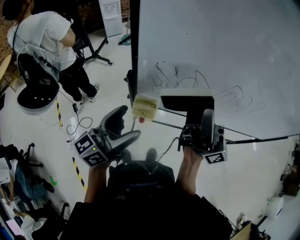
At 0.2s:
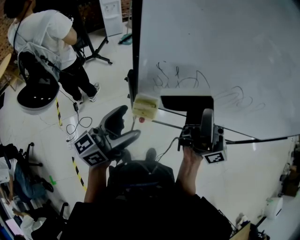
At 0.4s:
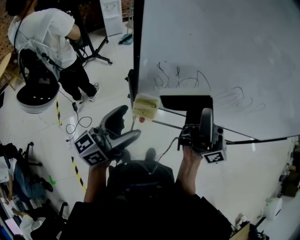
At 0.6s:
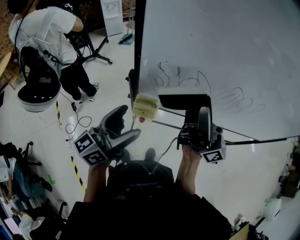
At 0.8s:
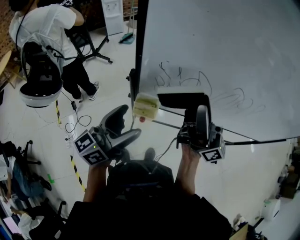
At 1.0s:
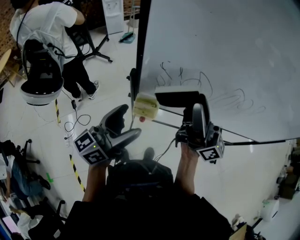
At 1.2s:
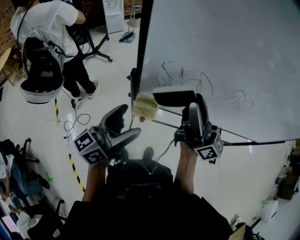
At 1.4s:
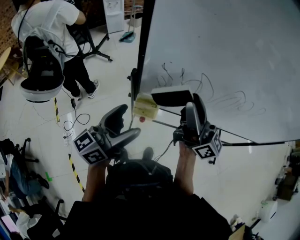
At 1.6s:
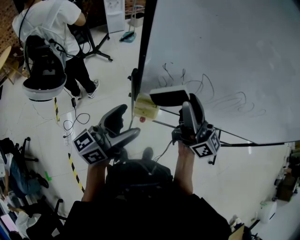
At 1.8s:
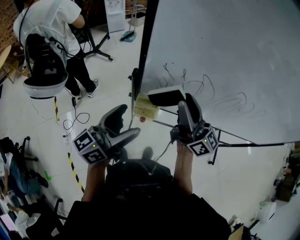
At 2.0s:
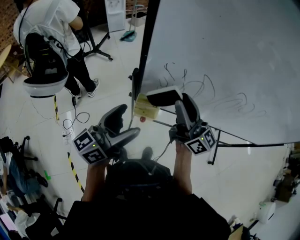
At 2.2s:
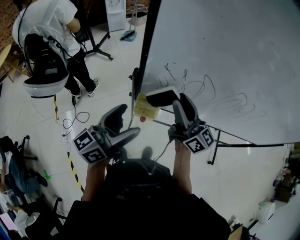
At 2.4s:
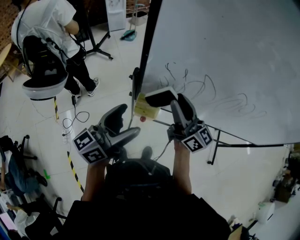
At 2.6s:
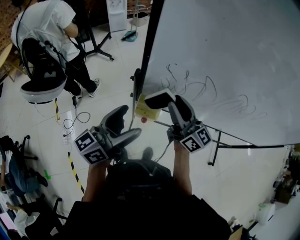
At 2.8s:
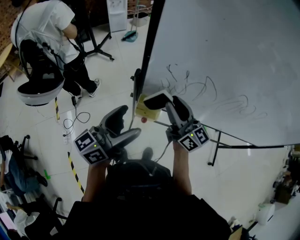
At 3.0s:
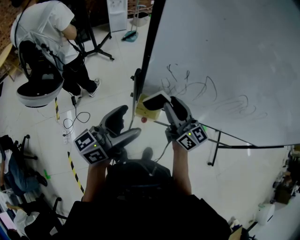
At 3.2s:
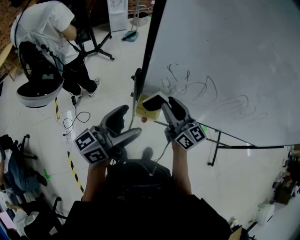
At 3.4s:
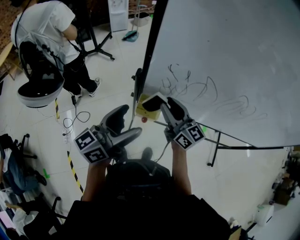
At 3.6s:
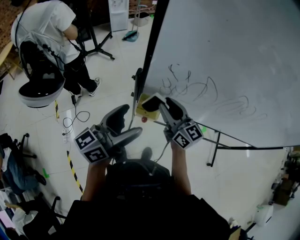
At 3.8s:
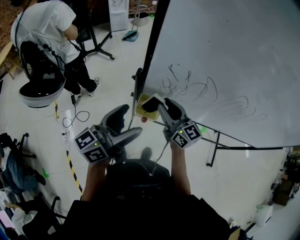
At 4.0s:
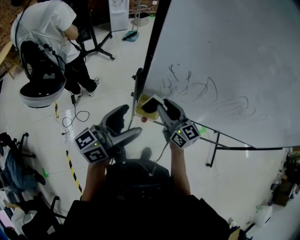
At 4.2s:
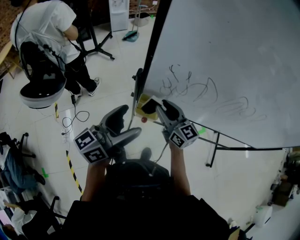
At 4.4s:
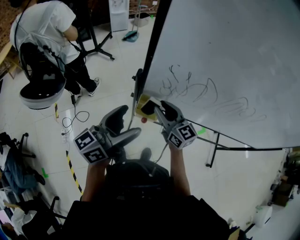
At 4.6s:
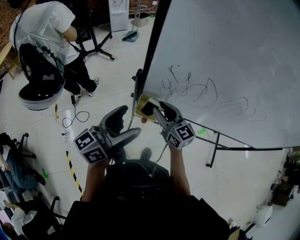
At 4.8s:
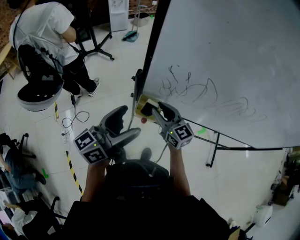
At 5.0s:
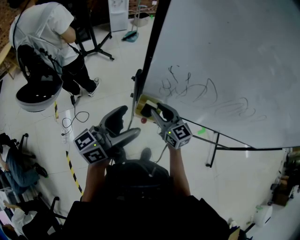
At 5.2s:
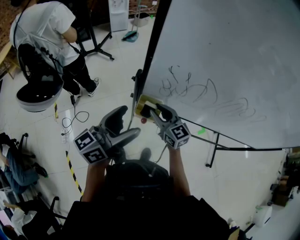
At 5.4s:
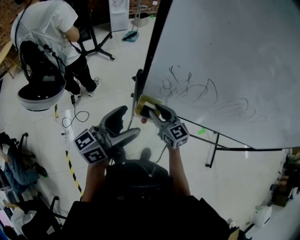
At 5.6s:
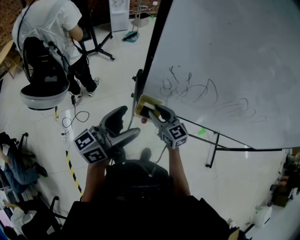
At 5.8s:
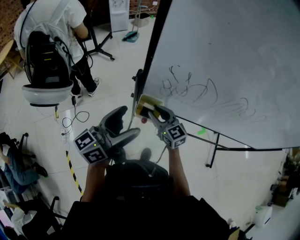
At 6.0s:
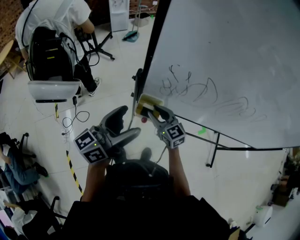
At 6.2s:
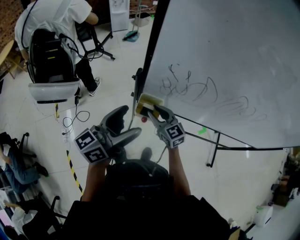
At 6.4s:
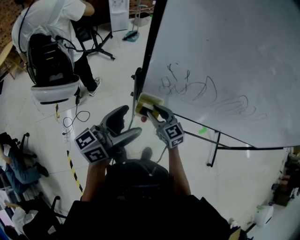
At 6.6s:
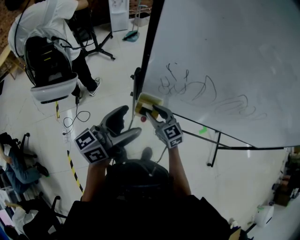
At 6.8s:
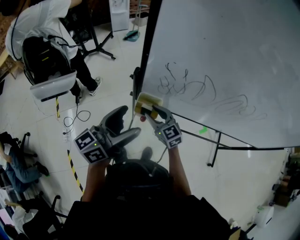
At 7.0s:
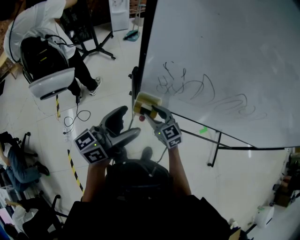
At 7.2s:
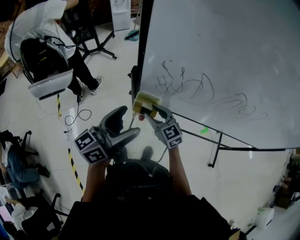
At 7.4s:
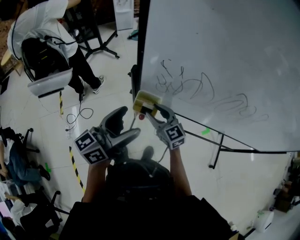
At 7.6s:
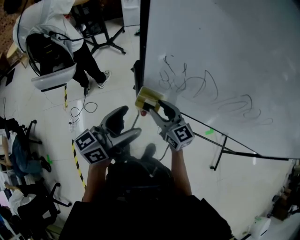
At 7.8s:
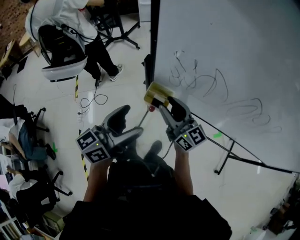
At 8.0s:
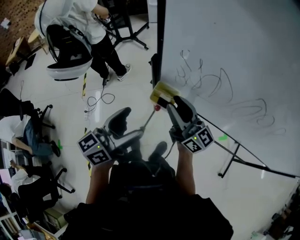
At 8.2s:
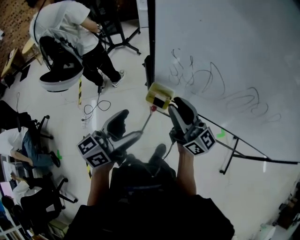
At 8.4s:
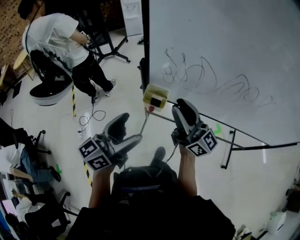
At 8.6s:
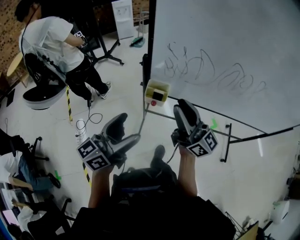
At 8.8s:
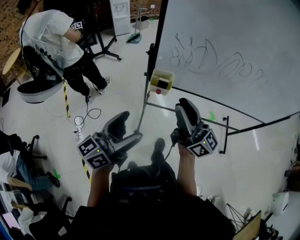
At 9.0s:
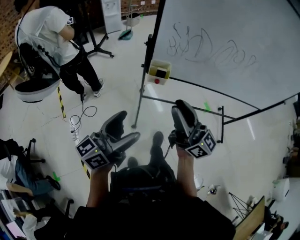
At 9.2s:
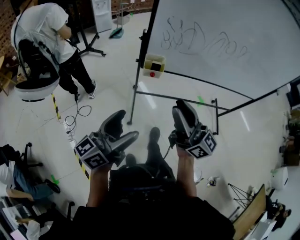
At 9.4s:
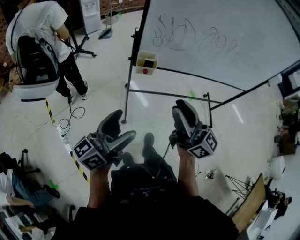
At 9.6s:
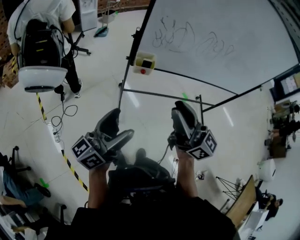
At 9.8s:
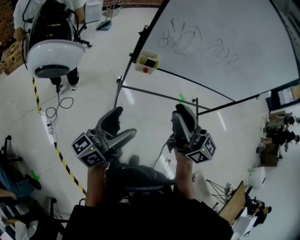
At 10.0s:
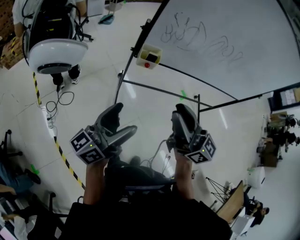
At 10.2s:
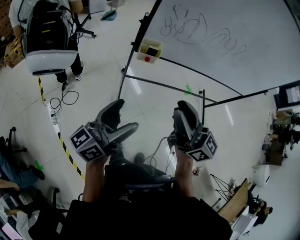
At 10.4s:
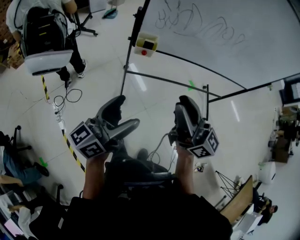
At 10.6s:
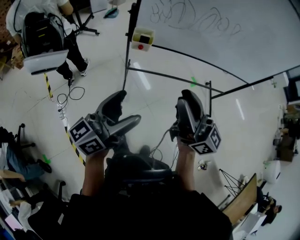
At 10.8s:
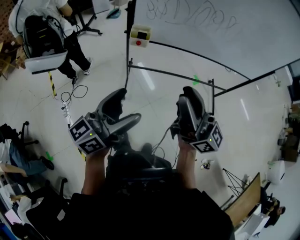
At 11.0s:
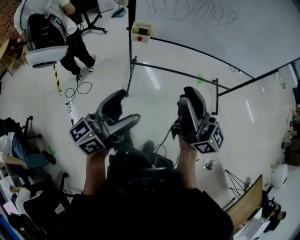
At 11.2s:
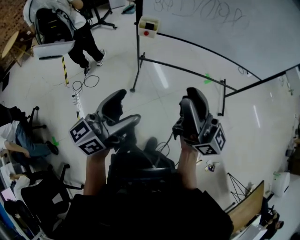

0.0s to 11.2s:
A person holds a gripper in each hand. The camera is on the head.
0.0s to 1.6s: The right gripper heads downward, covering about 5 cm, and rotates about 20 degrees.
1.6s to 3.2s: The right gripper heads downward and to the left, covering about 15 cm, and rotates about 20 degrees.
3.2s to 4.8s: The right gripper is displaced downward by about 5 cm.
4.8s to 6.4s: The right gripper is displaced downward by about 5 cm.
6.4s to 8.0s: The left gripper is displaced backward by some 5 cm; the right gripper shifts about 15 cm upward, and points its fingers some 30 degrees further upward.
8.0s to 9.6s: The left gripper shifts about 25 cm backward and to the left, and changes its angle by about 30 degrees. The right gripper moves backward, about 30 cm, and turns by approximately 20 degrees.
9.6s to 11.2s: Both grippers move to the right and backward, some 20 cm.

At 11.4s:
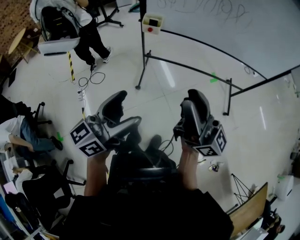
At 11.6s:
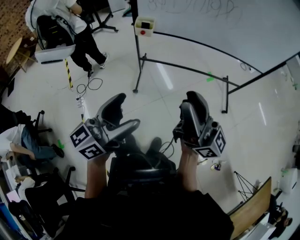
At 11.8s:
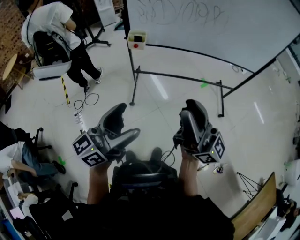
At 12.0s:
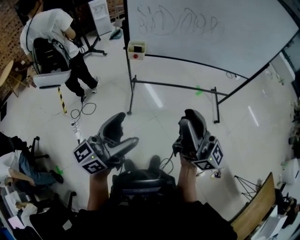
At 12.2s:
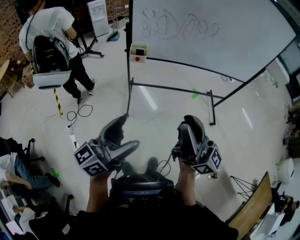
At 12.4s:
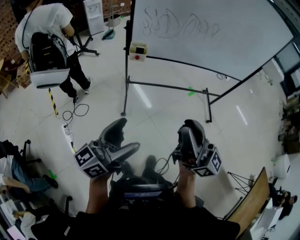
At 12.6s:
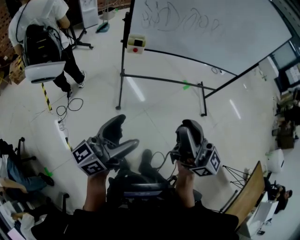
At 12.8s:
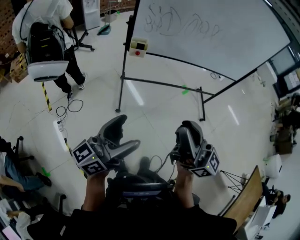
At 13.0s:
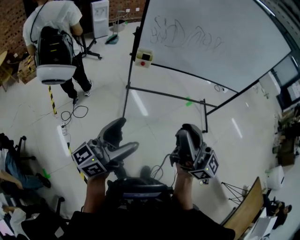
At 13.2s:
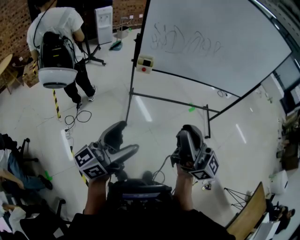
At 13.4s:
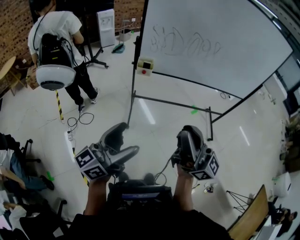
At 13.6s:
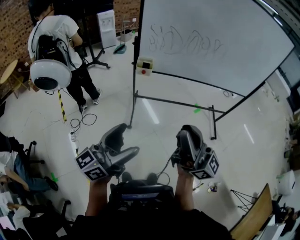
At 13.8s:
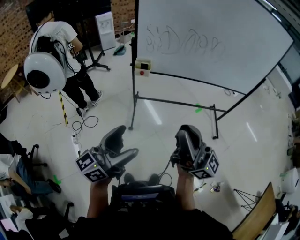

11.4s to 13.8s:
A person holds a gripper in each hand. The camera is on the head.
11.4s to 12.6s: The left gripper is displaced to the left by some 10 cm. The right gripper travels to the left and backward by approximately 10 cm.
12.6s to 13.8s: The left gripper ends up about 5 cm from where it was. Meanwhile the right gripper shifts roughly 5 cm to the right.

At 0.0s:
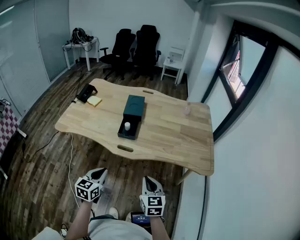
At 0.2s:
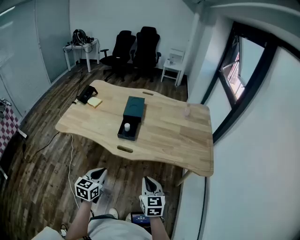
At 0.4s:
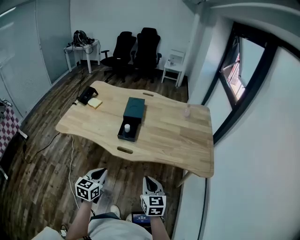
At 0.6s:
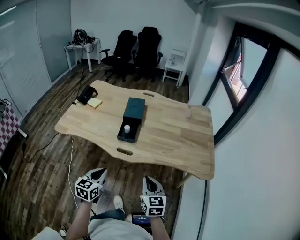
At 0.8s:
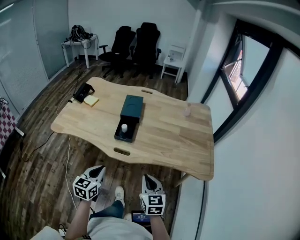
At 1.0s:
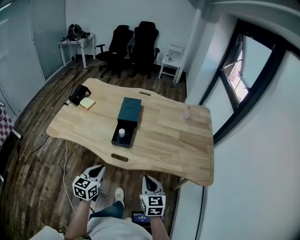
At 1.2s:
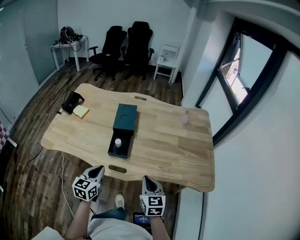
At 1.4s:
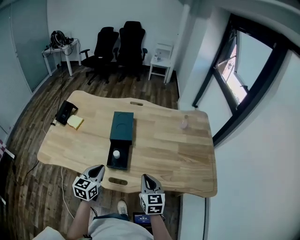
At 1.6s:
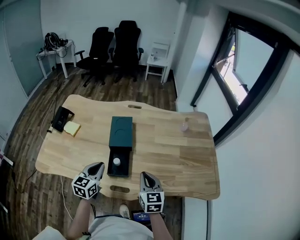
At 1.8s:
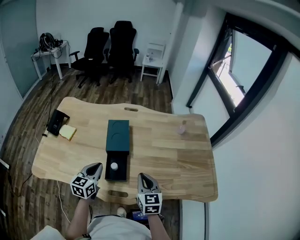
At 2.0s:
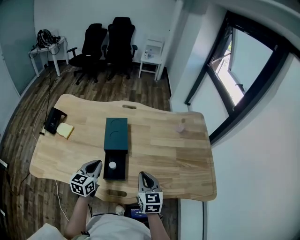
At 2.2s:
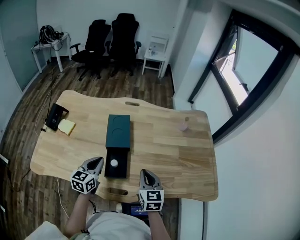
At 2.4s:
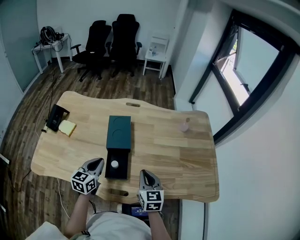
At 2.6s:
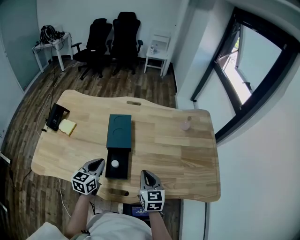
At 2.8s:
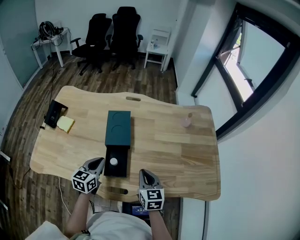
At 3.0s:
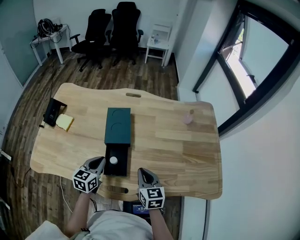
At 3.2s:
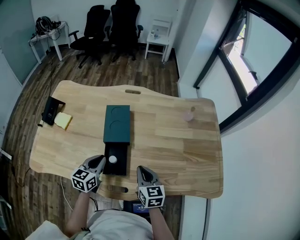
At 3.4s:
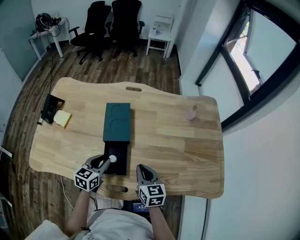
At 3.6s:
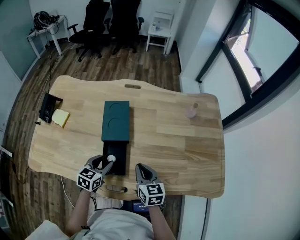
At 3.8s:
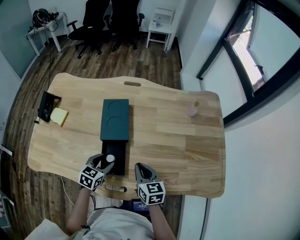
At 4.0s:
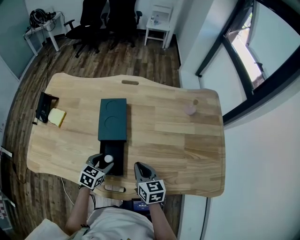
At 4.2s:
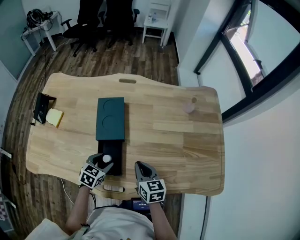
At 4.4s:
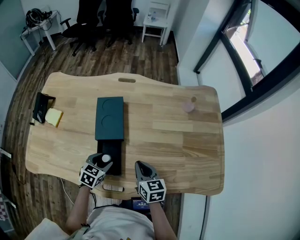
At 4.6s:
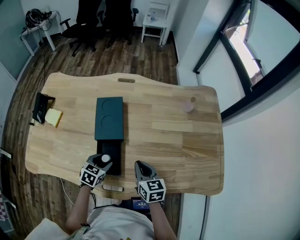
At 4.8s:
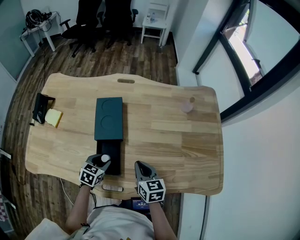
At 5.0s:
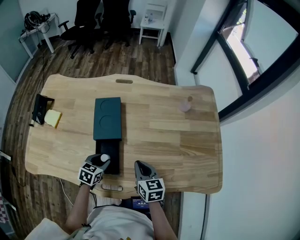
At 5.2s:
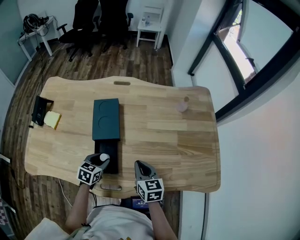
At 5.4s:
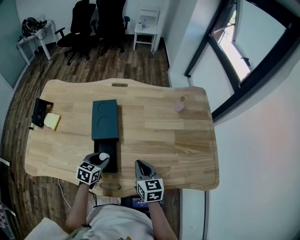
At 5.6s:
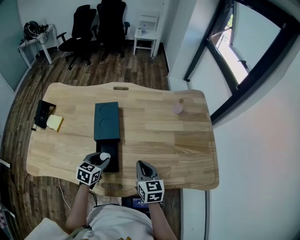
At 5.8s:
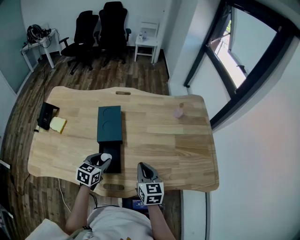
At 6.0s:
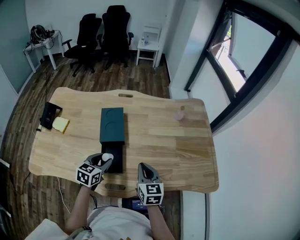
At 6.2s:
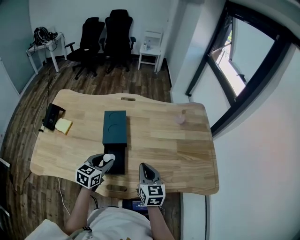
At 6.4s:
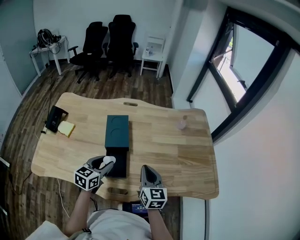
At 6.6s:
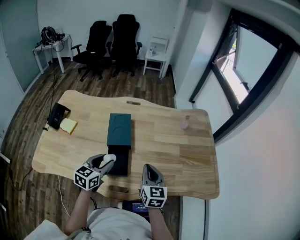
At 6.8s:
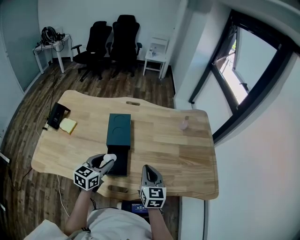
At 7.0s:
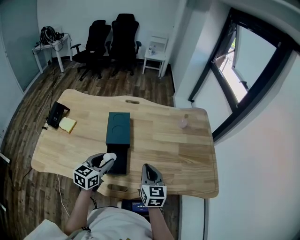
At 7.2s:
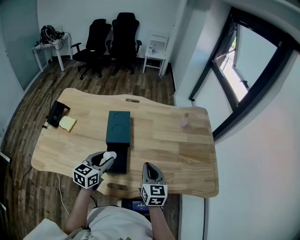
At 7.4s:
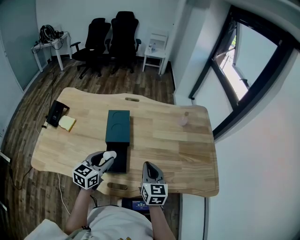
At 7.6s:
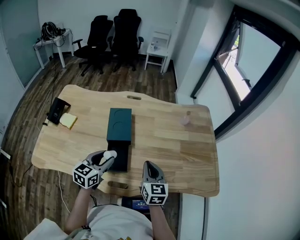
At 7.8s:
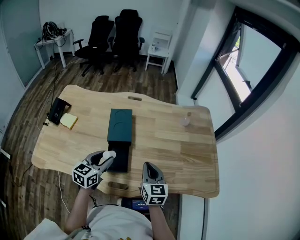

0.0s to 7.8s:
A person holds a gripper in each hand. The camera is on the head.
0.0s to 1.6s: Both grippers move forward, some 25 cm.
1.6s to 3.2s: Both grippers travel together downward, about 5 cm.
3.2s to 4.6s: The left gripper travels downward by some 10 cm, rotates about 30 degrees, and opens its fingers.
4.6s to 6.2s: The right gripper shifts roughly 10 cm upward, while the left gripper moves upward, approximately 15 cm, and rotates roughly 20 degrees.
6.2s to 7.8s: The grippers move only a little.

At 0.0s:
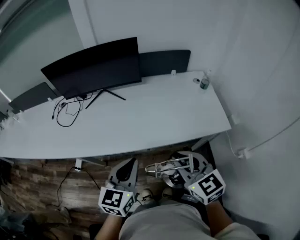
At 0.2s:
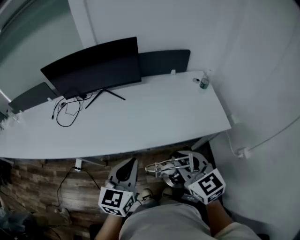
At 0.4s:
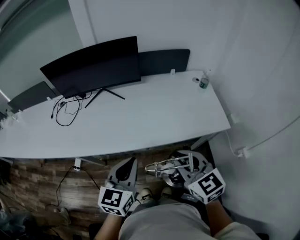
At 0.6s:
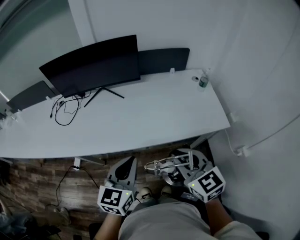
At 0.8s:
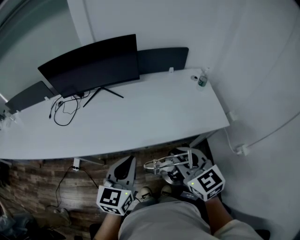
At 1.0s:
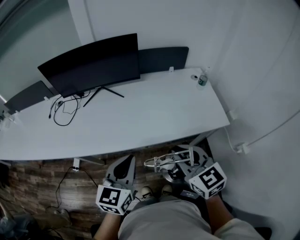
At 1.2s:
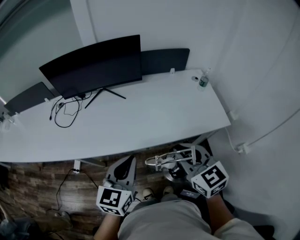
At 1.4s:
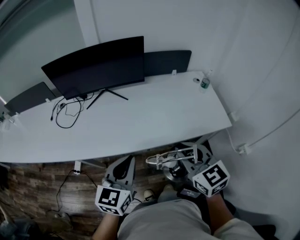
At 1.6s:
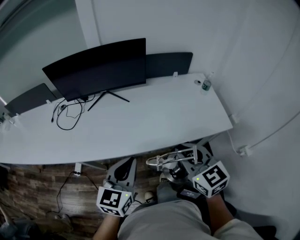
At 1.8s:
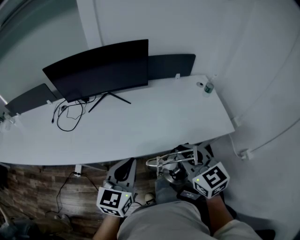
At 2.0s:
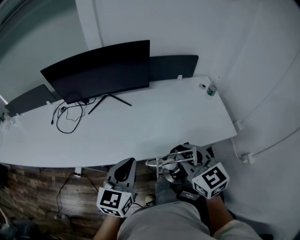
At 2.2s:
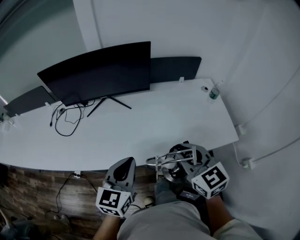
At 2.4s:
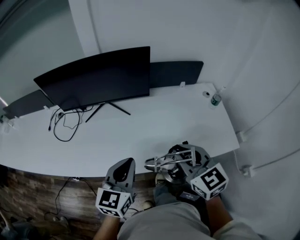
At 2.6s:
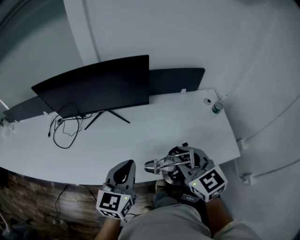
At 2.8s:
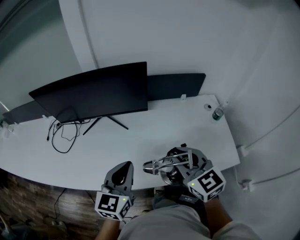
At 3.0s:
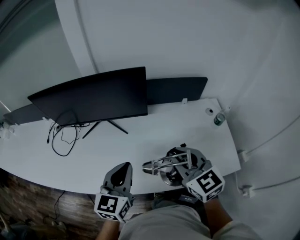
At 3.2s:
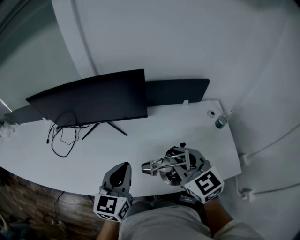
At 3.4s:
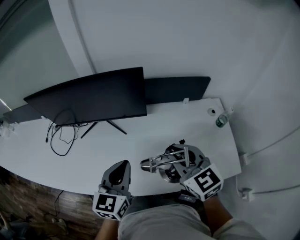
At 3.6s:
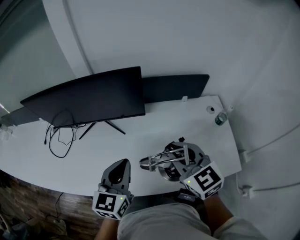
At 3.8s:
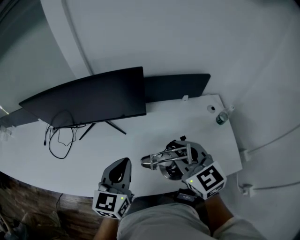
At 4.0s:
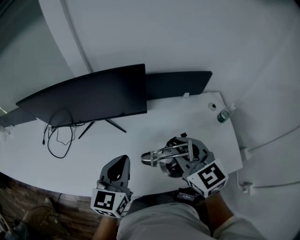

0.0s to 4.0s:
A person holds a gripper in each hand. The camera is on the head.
0.0s to 1.4s: The left gripper heads to the left, covering some 5 cm.
1.4s to 2.6s: The grippers both shift forward by some 15 cm.
2.6s to 4.0s: The grippers both shift forward by about 10 cm.
